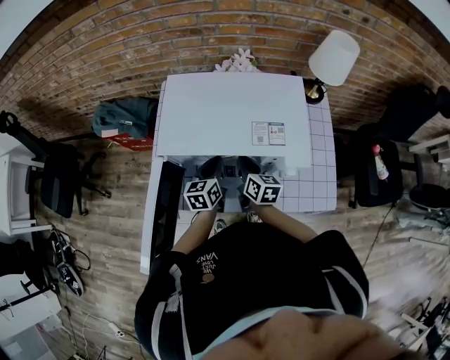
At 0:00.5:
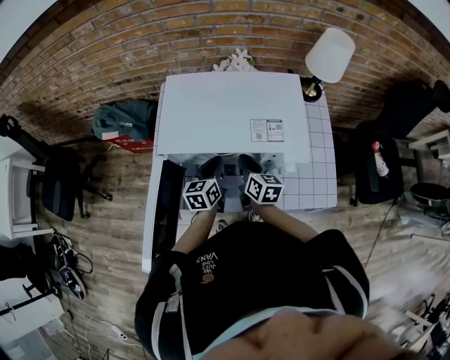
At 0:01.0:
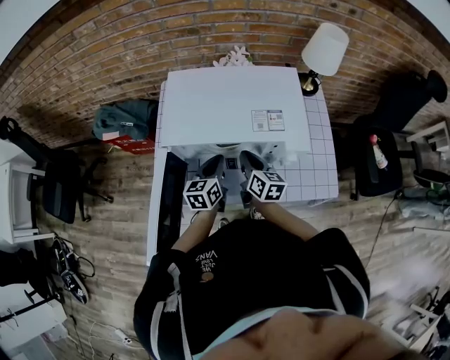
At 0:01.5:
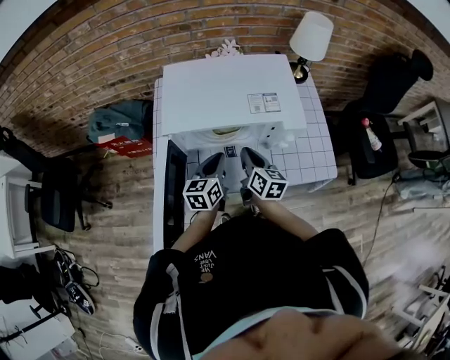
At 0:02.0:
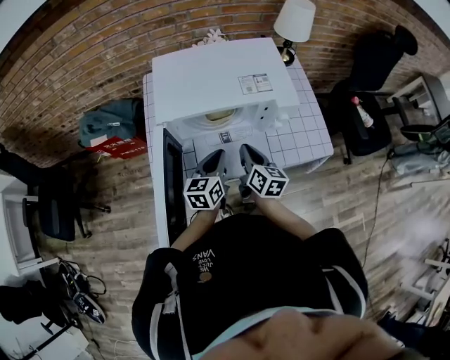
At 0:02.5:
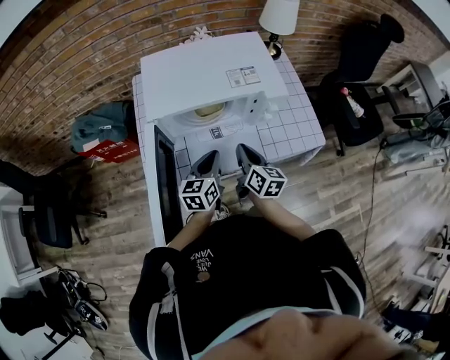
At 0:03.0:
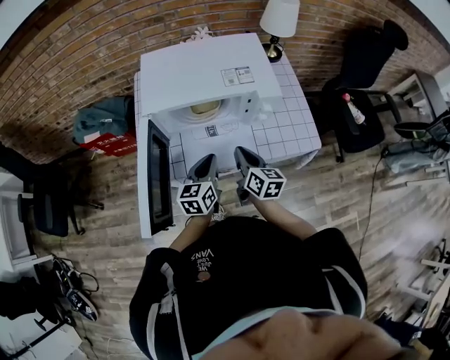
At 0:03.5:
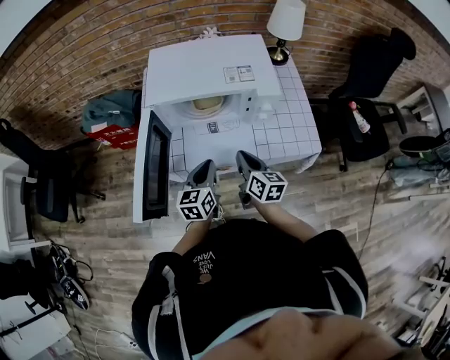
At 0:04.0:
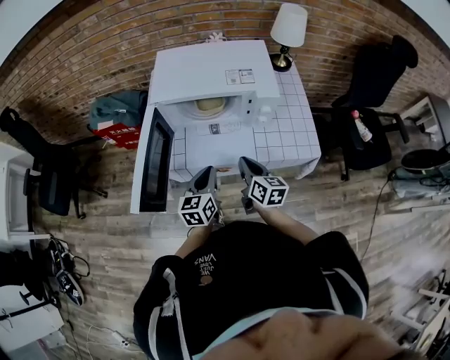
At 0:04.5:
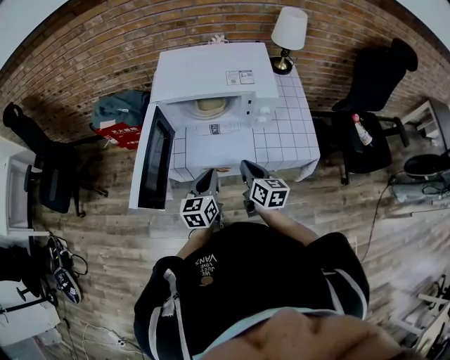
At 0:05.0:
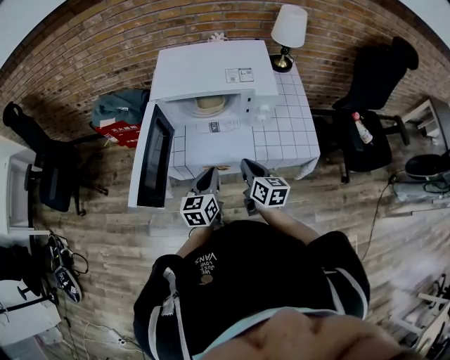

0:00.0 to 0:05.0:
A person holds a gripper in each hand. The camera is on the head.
0:00.0 to 0:02.5: The grippers both shift backward by roughly 15 cm. The right gripper turns by roughly 20 degrees.
0:02.5 to 0:05.0: The right gripper goes approximately 10 cm backward and to the right; the left gripper travels backward by approximately 10 cm.

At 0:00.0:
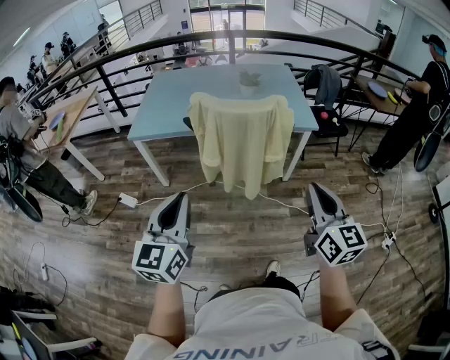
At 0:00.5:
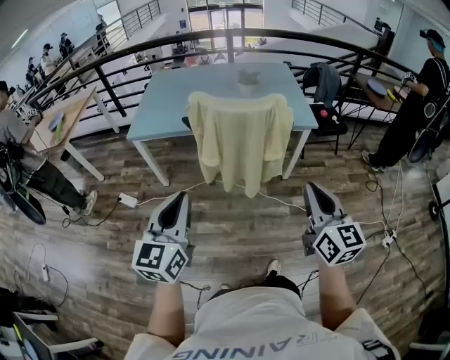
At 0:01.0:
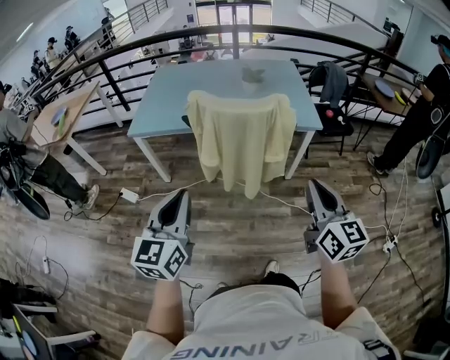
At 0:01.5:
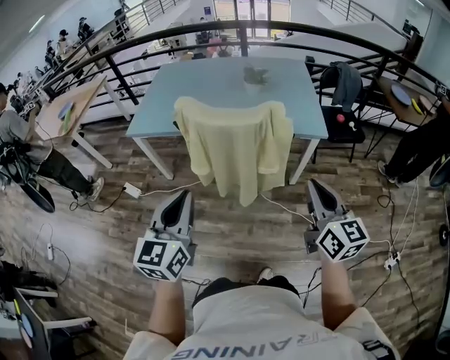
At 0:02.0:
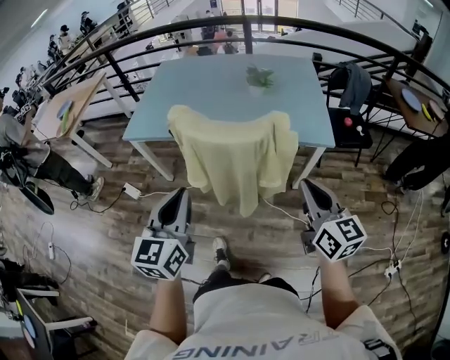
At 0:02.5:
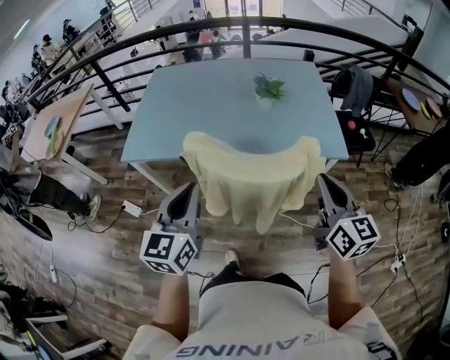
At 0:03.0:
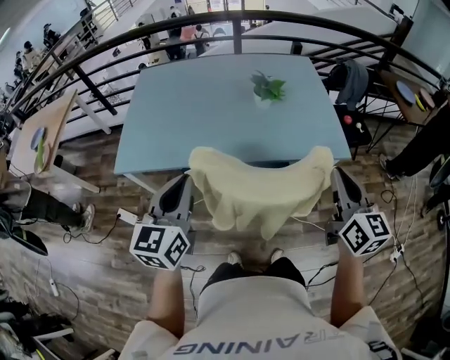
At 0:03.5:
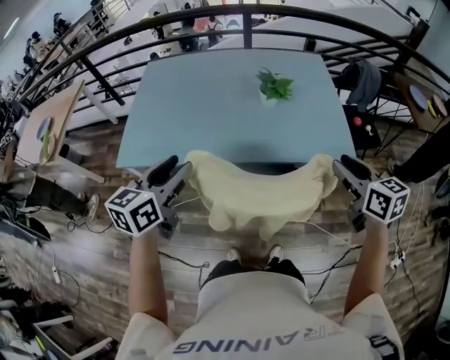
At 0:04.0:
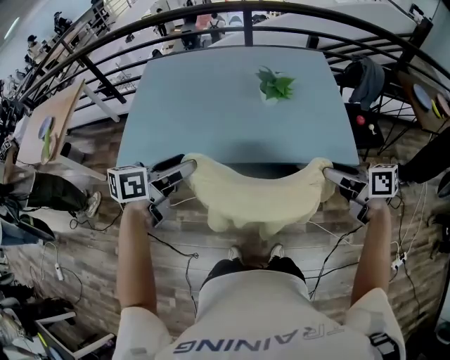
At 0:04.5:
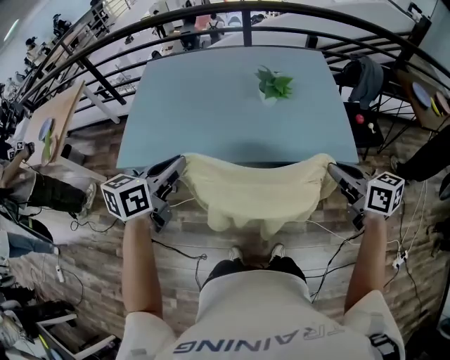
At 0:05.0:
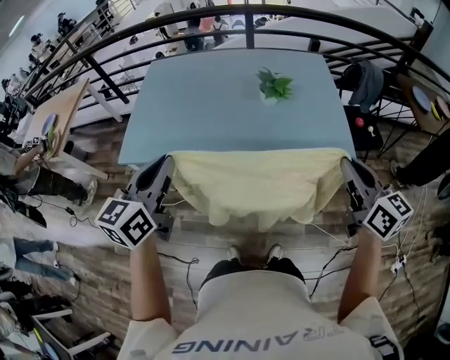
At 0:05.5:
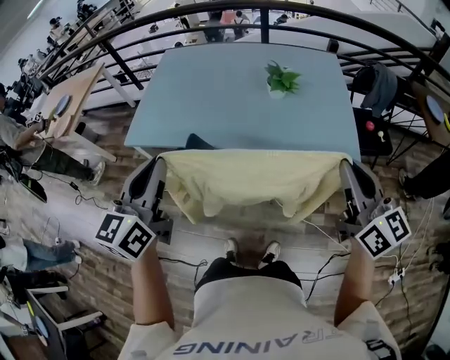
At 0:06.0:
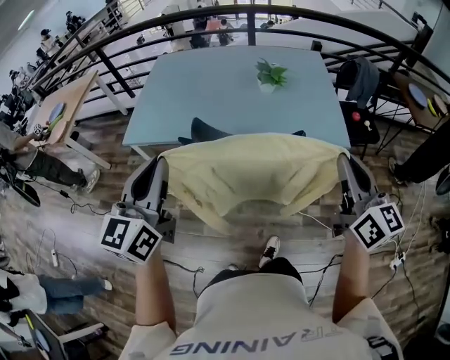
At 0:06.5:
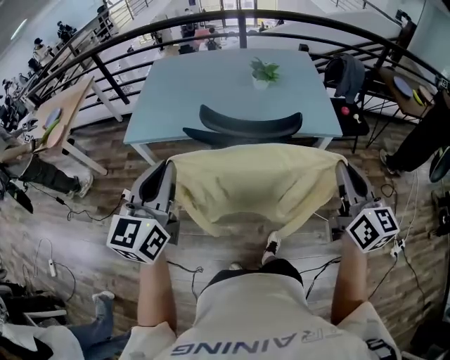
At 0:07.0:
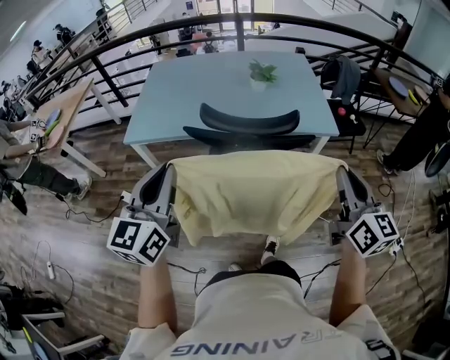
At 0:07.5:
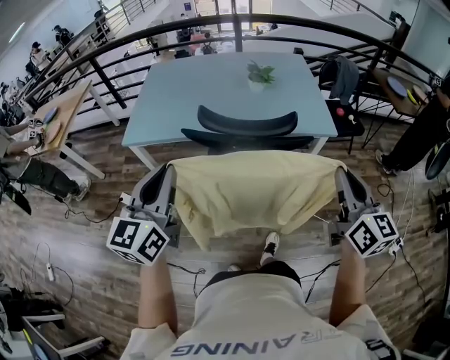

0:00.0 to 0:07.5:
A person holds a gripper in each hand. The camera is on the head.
0:00.0 to 0:02.0: The grippers both shift forward and to the right by approximately 25 cm.
0:02.0 to 0:04.0: Both grippers move forward, approximately 30 cm. The left gripper swivels some 50 degrees, and opens up, while the right gripper swivels roughly 40 degrees, and opens its fingers.
0:04.0 to 0:05.5: The right gripper shifts approximately 15 cm upward and backward, rotates about 50 degrees, and closes; the left gripper goes some 15 cm backward and upward, swivels some 50 degrees, and closes.
0:05.5 to 0:07.5: The grippers both shift backward by some 20 cm.

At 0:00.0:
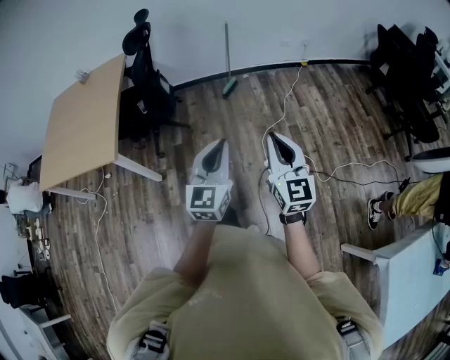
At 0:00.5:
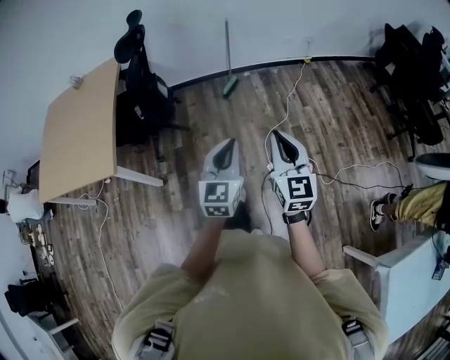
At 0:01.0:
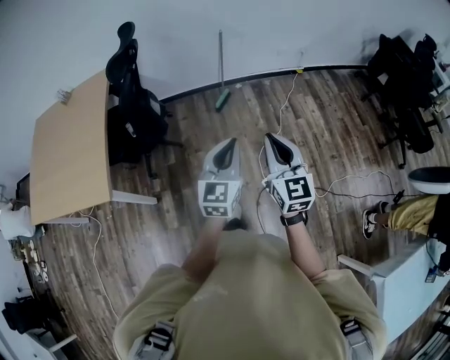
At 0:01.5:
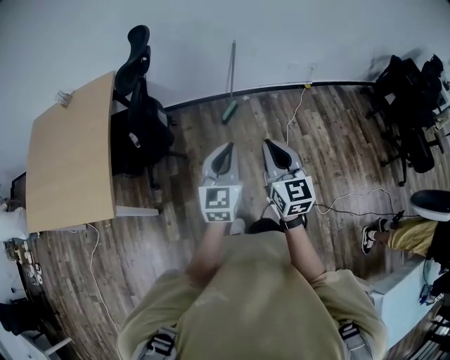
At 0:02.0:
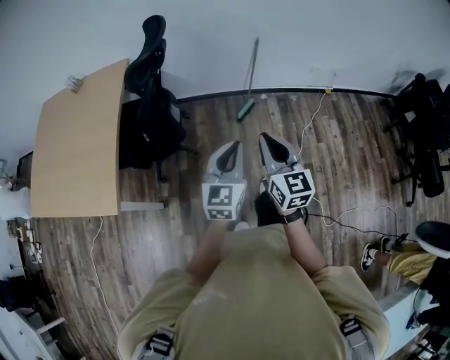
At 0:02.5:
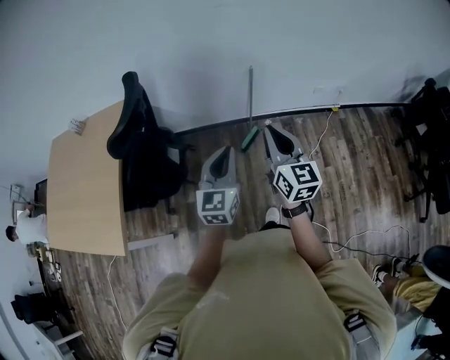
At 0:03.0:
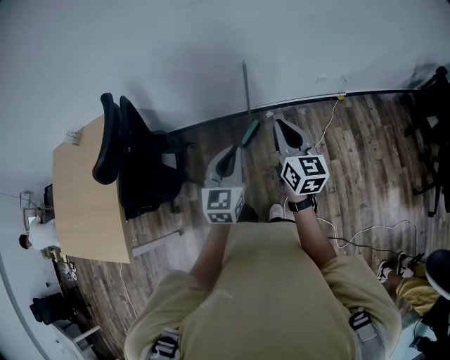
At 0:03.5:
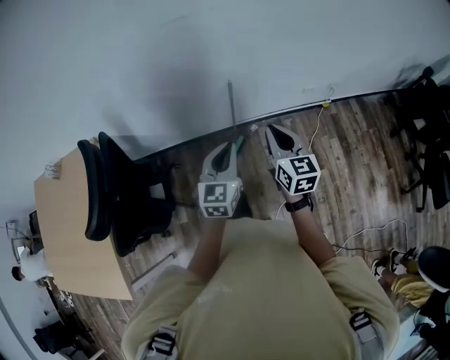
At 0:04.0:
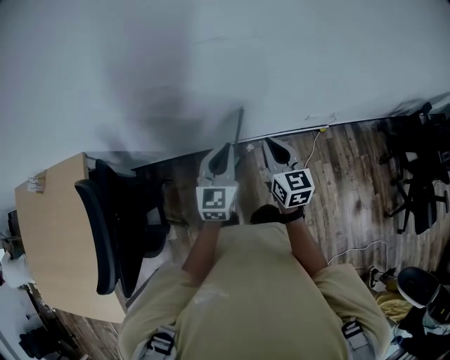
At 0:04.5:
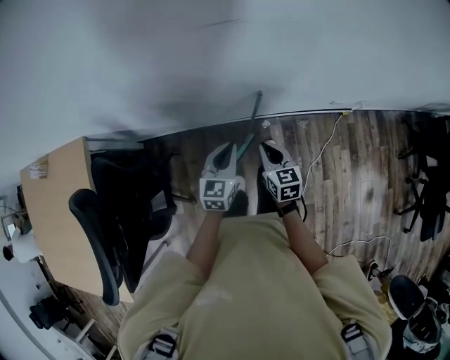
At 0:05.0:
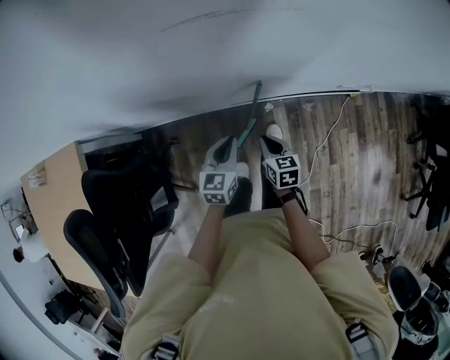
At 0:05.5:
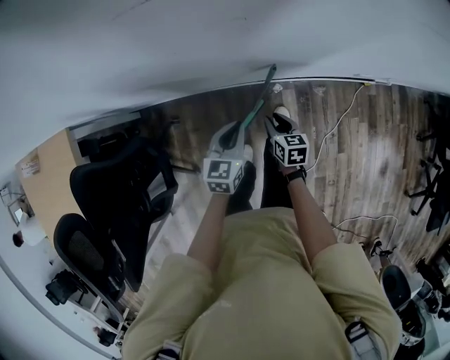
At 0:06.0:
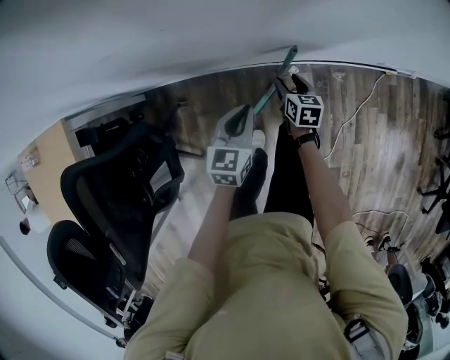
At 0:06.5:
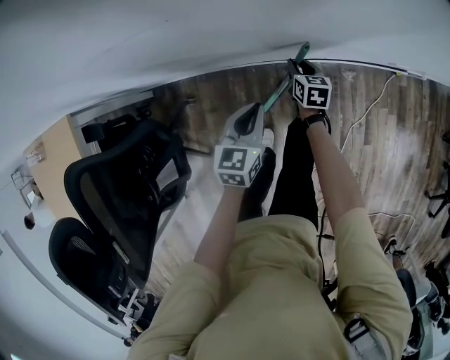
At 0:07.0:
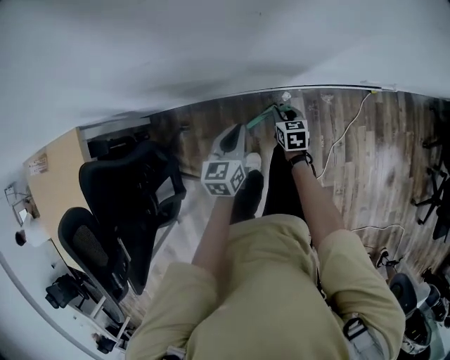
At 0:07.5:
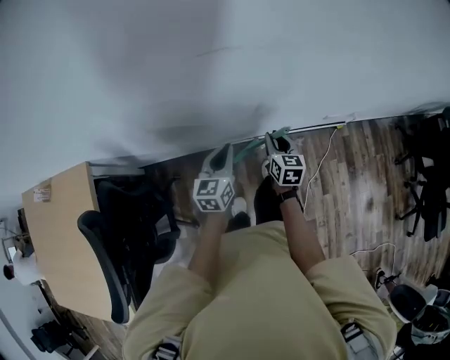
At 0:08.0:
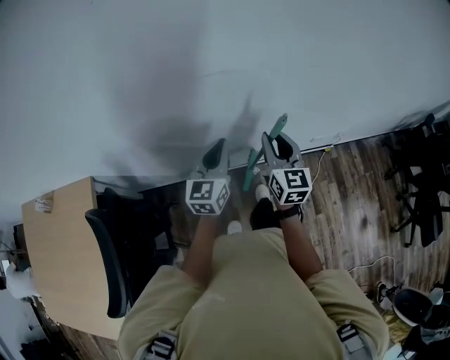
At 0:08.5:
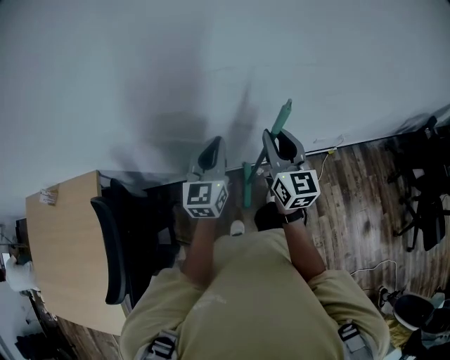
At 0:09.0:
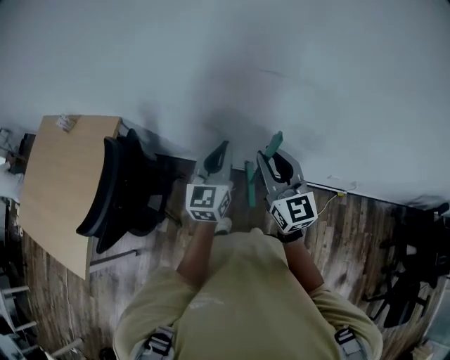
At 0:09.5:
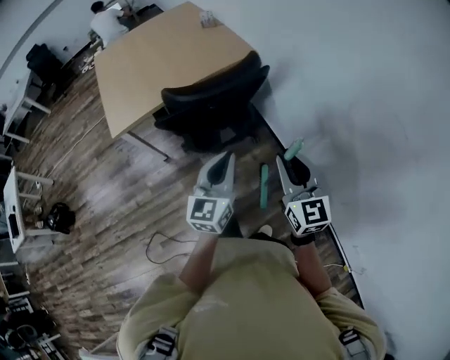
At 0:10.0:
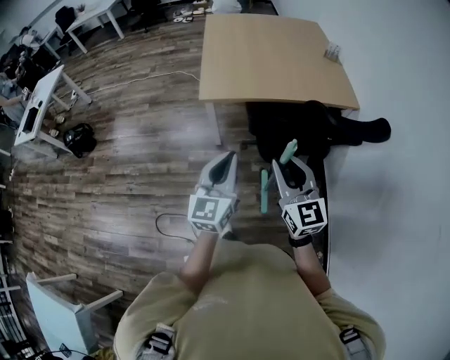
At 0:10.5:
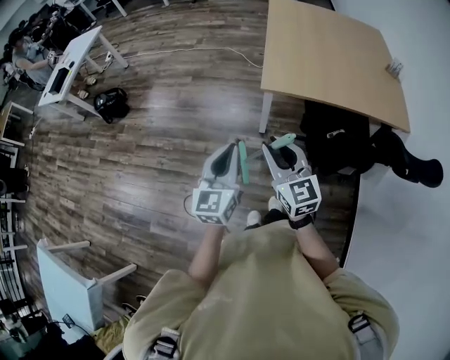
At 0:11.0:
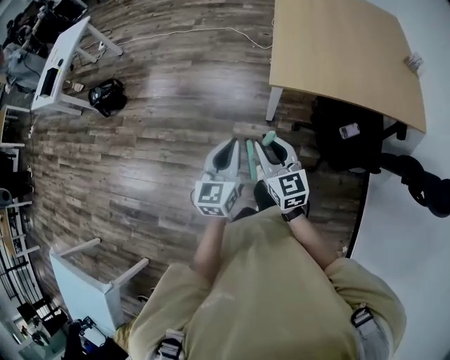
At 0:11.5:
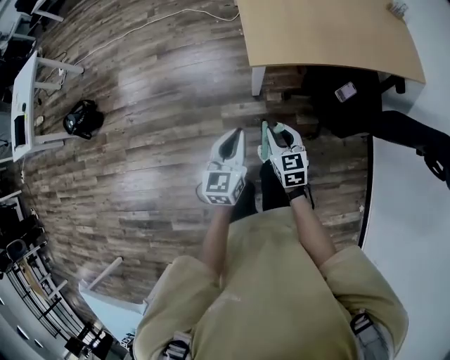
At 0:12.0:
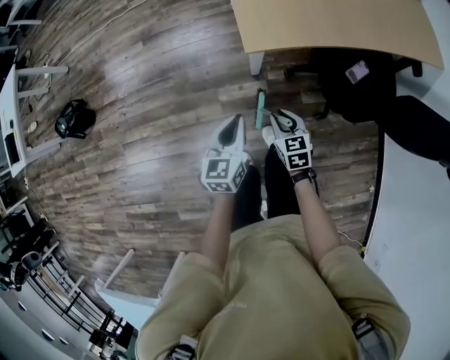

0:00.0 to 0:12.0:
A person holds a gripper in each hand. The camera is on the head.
0:00.0 to 0:02.0: Both grippers are carried forward, approximately 40 cm.
0:02.0 to 0:04.0: The two grippers travel together, forward, about 60 cm.
0:04.0 to 0:06.0: The right gripper goes roughly 50 cm downward and forward, changes its angle by roughly 30 degrees, and opens up. Meanwhile the left gripper is displaced downward by some 35 cm, and turns by roughly 30 degrees.
0:06.0 to 0:08.0: The grippers both shift upward by approximately 40 cm. The left gripper rotates roughly 30 degrees. Meanwhile the right gripper points its fingers approximately 40 degrees further upward, and closes up.
0:08.0 to 0:10.0: The pair of grippers is taken about 70 cm. The left gripper swivels approximately 100 degrees. Meanwhile the right gripper changes its angle by roughly 110 degrees.
0:10.0 to 0:12.0: The two grippers go approximately 60 cm downward, forward and to the left. The left gripper rotates approximately 30 degrees, while the right gripper angles its fingers downward, by some 40 degrees.

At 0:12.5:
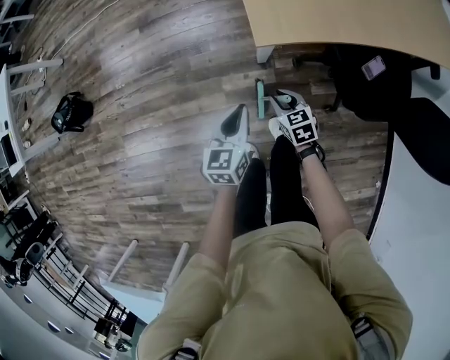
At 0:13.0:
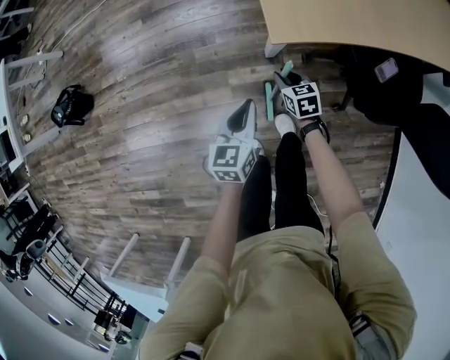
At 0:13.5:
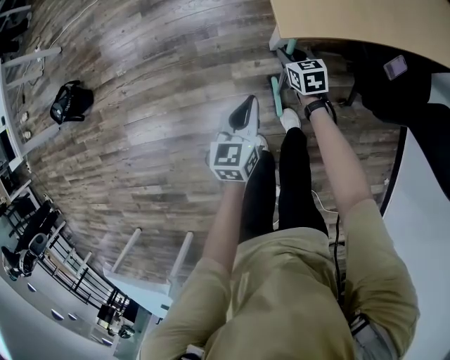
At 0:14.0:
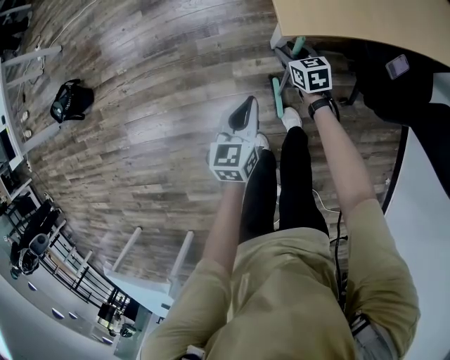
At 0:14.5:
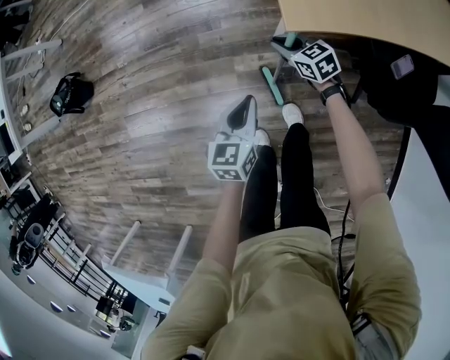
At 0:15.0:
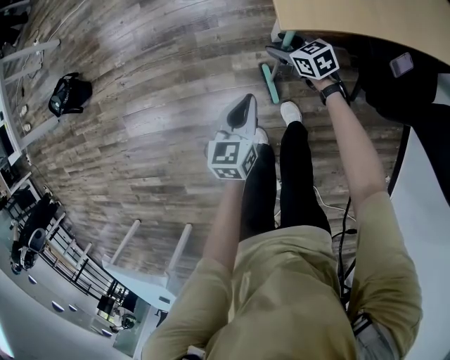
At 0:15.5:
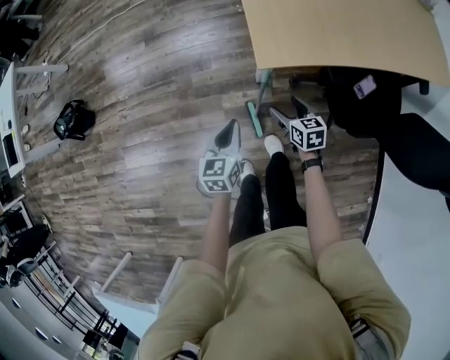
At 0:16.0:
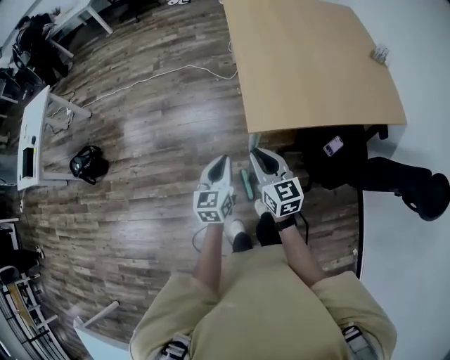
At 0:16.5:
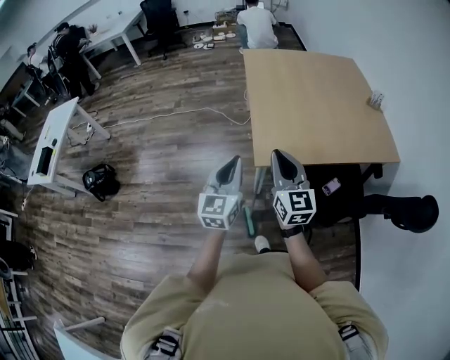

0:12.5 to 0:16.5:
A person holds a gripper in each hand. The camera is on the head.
0:12.5 to 0:14.5: The right gripper heads forward, covering roughly 15 cm, while the left gripper heads downward, covering roughly 5 cm.
0:14.5 to 0:16.5: Both grippers move upward, roughly 60 cm. The left gripper points its fingers about 30 degrees further upward. The right gripper points its fingers some 40 degrees further upward, and opens and closes again.
